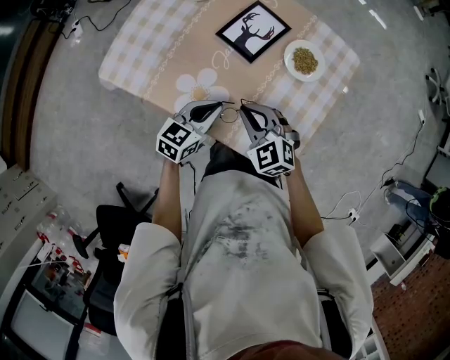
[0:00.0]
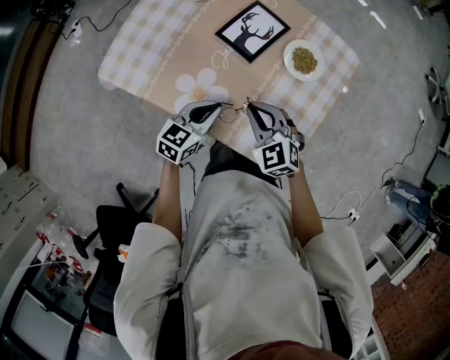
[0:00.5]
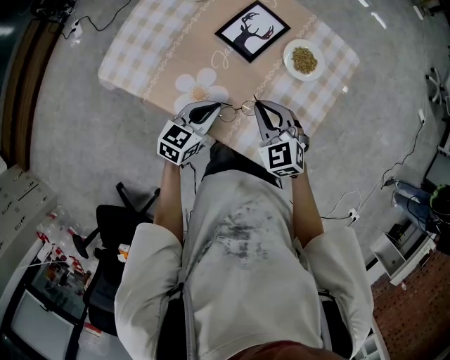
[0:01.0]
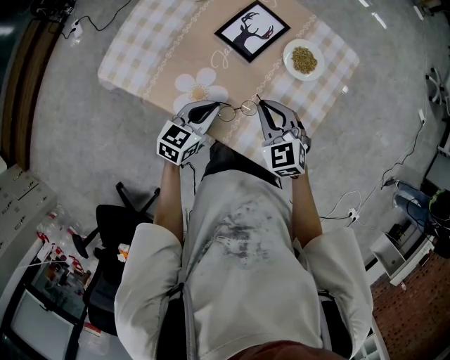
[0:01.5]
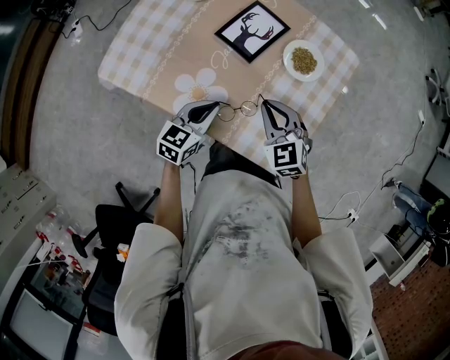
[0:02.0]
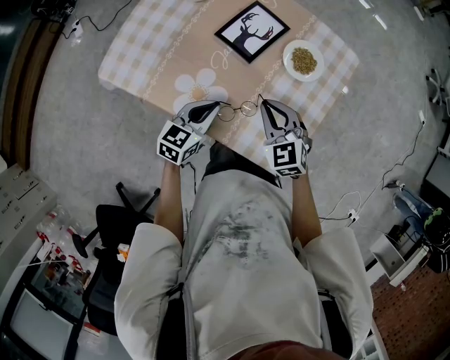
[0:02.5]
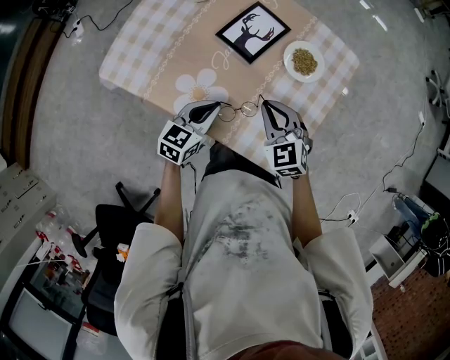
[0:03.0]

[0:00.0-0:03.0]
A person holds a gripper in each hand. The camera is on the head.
0:00.0 to 0:01.5: The right gripper ends up some 5 cm from where it was.
0:01.5 to 0:03.0: Neither gripper changes place.

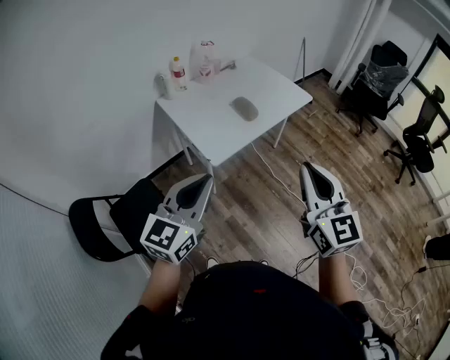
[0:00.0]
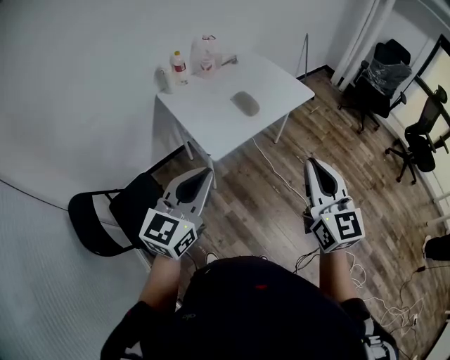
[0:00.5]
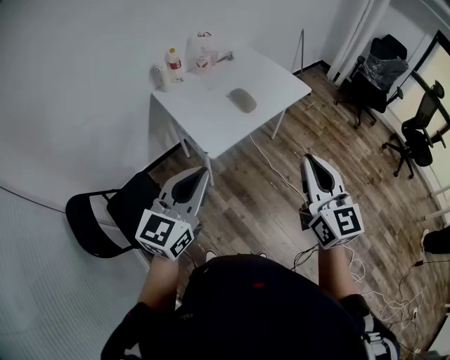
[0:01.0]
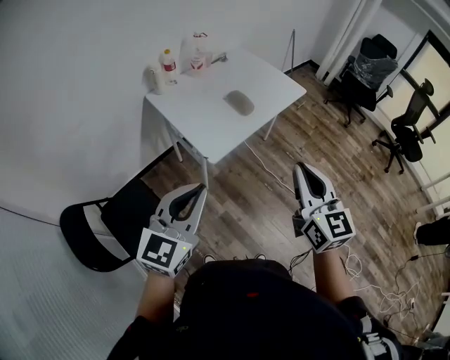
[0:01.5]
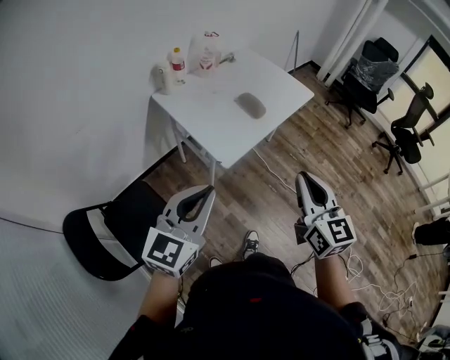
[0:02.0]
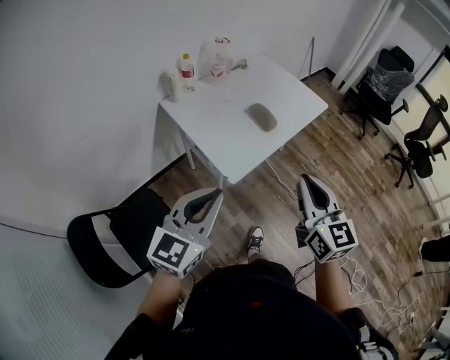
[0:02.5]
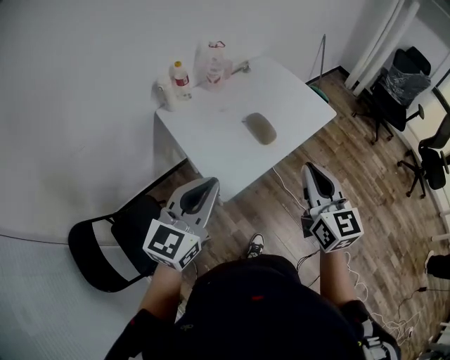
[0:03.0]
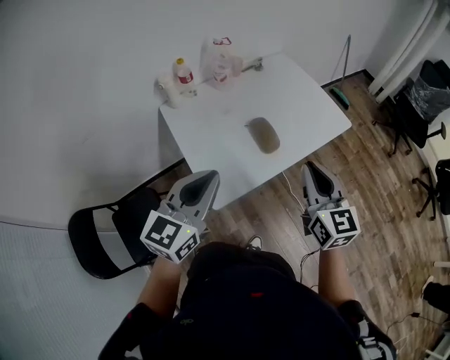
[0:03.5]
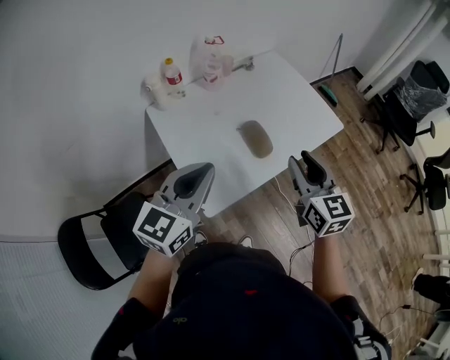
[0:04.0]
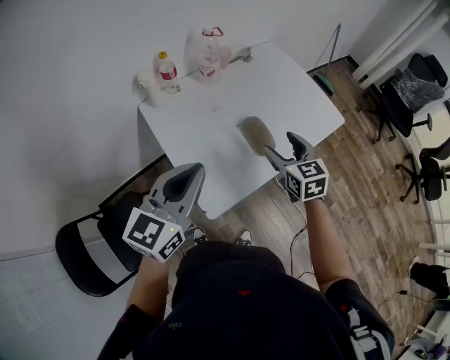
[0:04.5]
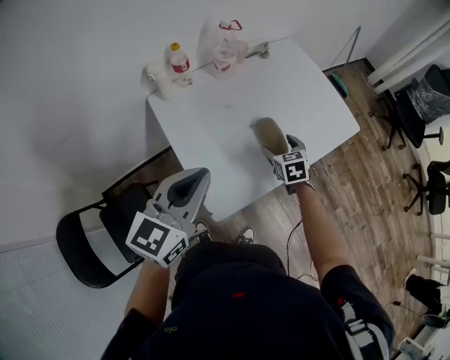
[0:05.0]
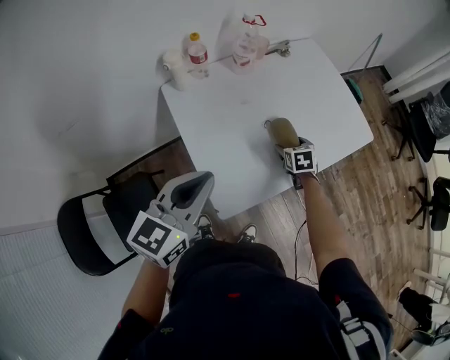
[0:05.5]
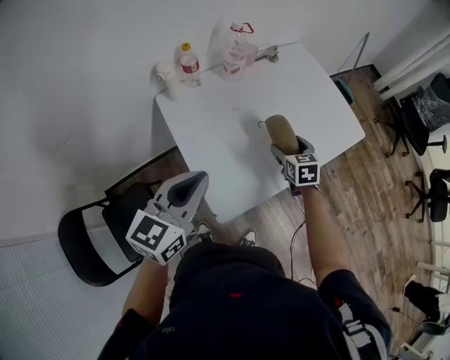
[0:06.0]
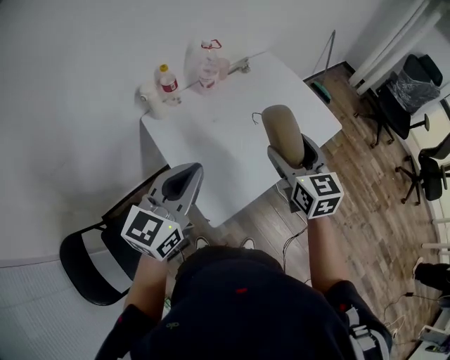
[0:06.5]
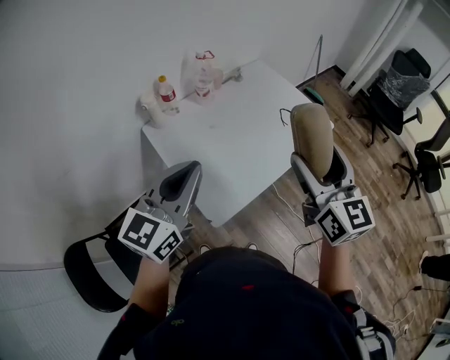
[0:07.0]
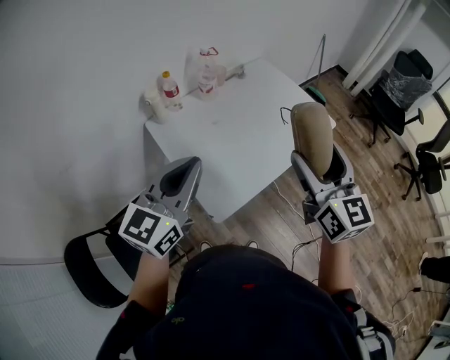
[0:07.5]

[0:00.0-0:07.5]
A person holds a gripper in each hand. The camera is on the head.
0:00.0 to 0:02.0: The left gripper moves to the left, some 10 cm; the right gripper shifts about 10 cm to the left and downward.
0:02.0 to 0:04.0: Both grippers move forward, about 35 cm.
0:04.0 to 0:05.5: The left gripper travels to the left and downward by approximately 10 cm. Meanwhile the right gripper travels downward and forward by about 35 cm, tilts its fingers approximately 40 degrees downward, and opens.
0:05.5 to 0:07.5: The left gripper goes some 10 cm upward, while the right gripper moves upward and backward, about 50 cm, and points its fingers approximately 50 degrees further upward.

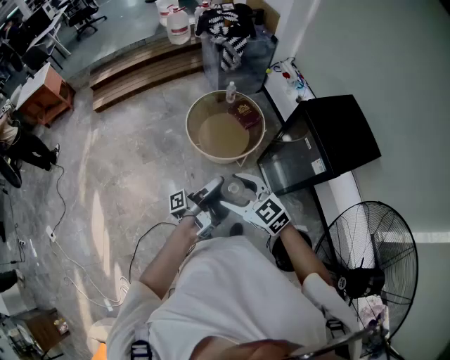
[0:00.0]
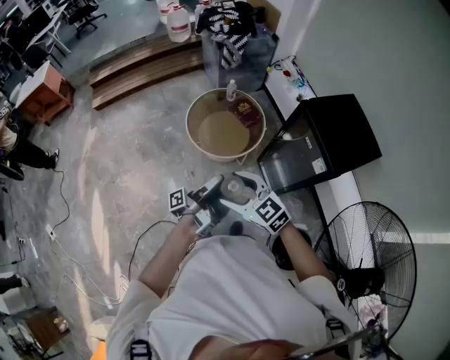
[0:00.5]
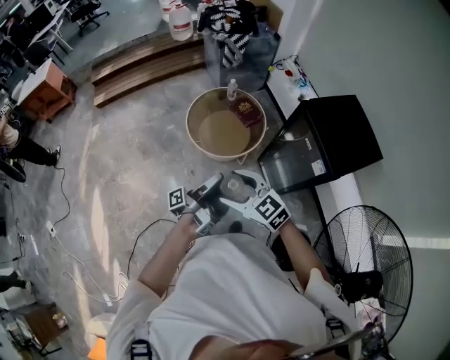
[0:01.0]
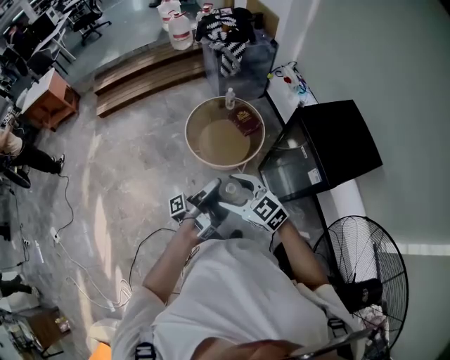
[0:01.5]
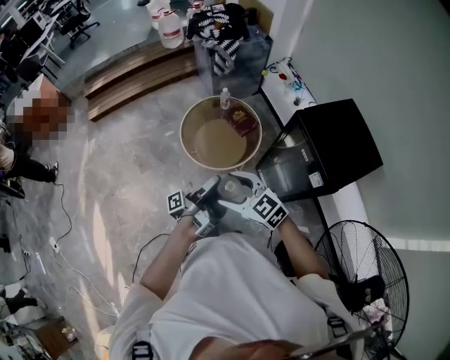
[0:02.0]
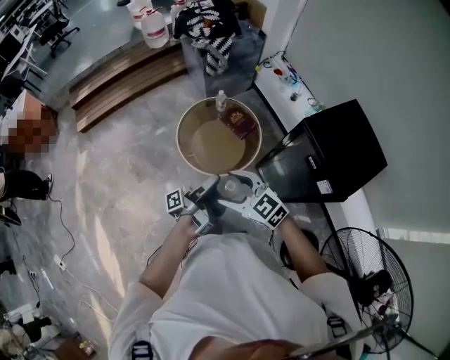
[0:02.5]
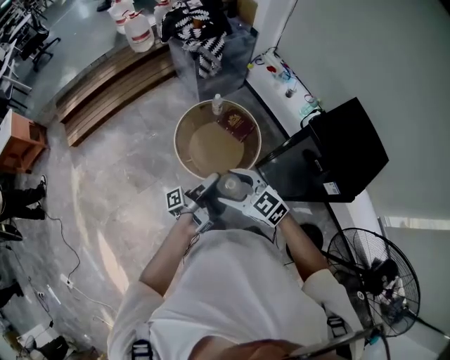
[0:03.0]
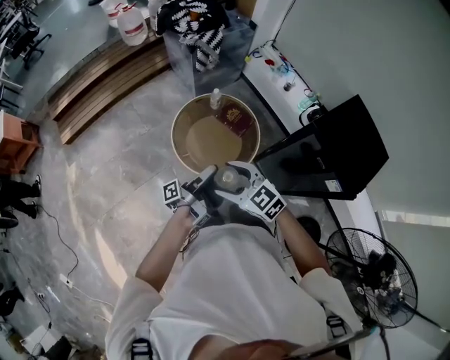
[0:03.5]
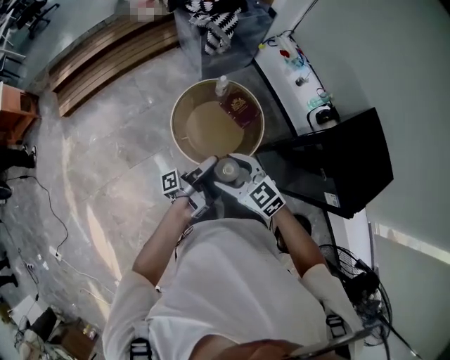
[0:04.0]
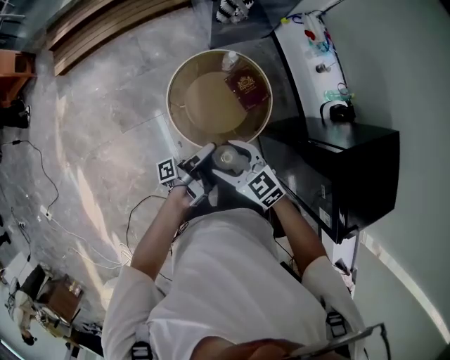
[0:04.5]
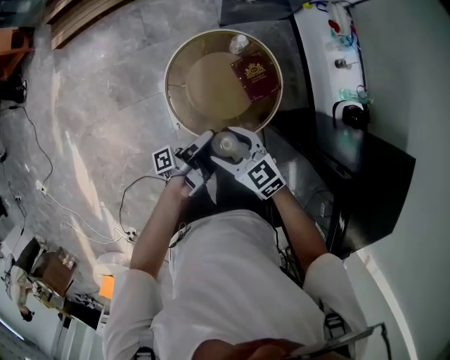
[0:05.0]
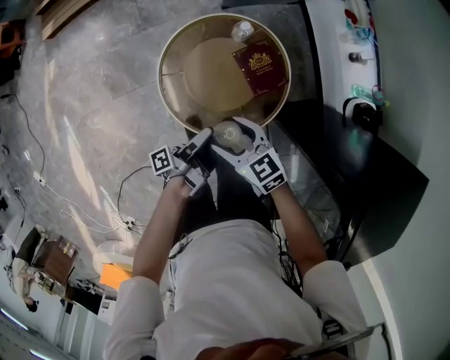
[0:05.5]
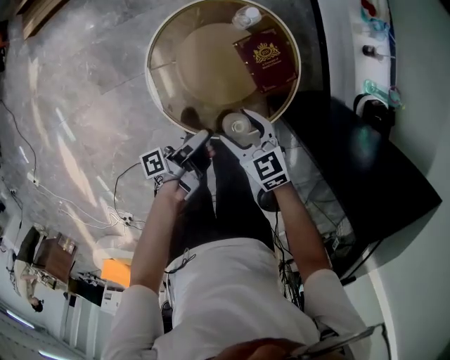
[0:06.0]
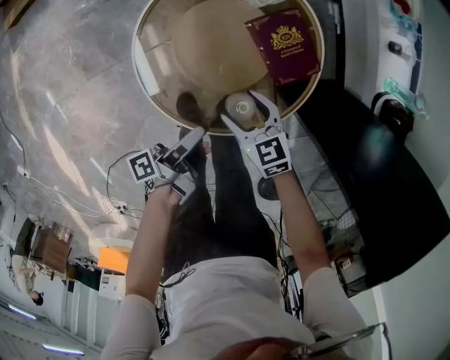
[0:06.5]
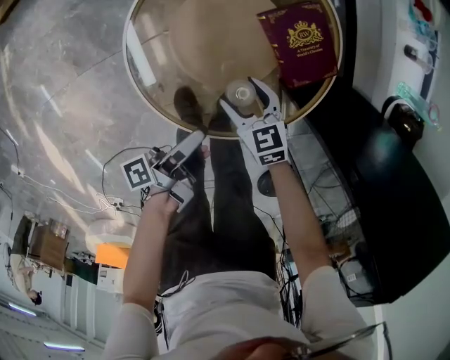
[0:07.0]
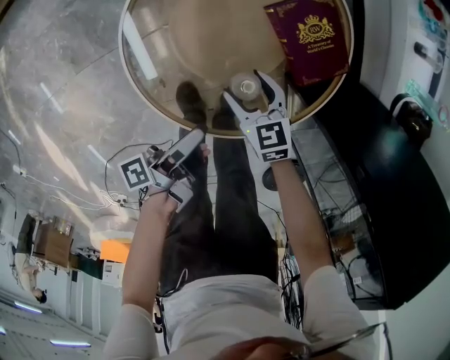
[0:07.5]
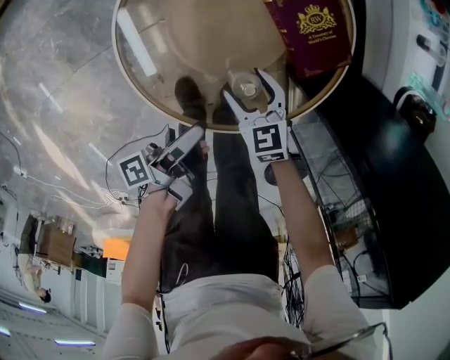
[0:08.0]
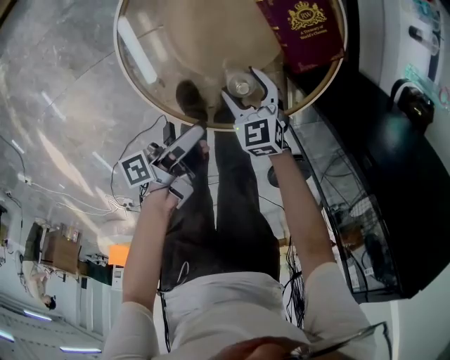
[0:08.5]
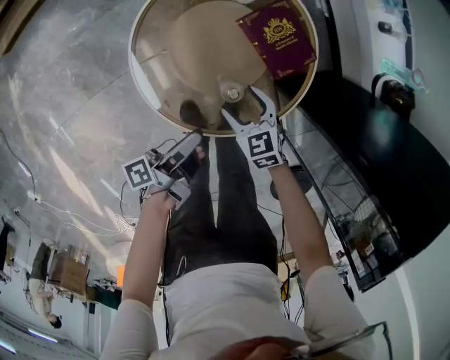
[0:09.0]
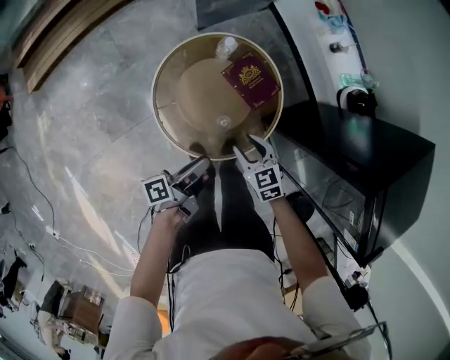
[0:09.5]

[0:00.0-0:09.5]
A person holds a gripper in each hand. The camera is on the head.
0:00.0 to 0:02.0: The right gripper changes place by roughly 10 cm.
0:02.0 to 0:04.0: The right gripper ends up roughly 25 cm from where it was.
0:04.0 to 0:05.5: The right gripper is displaced downward by roughly 25 cm.
0:05.5 to 0:07.5: The right gripper travels downward by some 35 cm, and turns by roughly 20 degrees.
0:07.5 to 0:09.5: The right gripper is displaced upward by roughly 25 cm, and closes up.

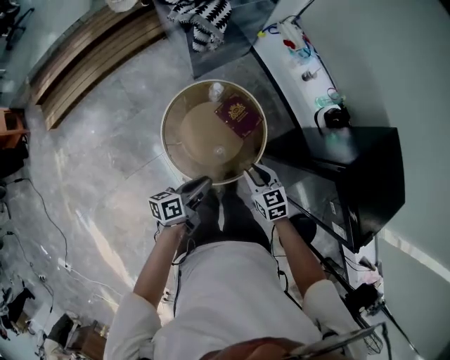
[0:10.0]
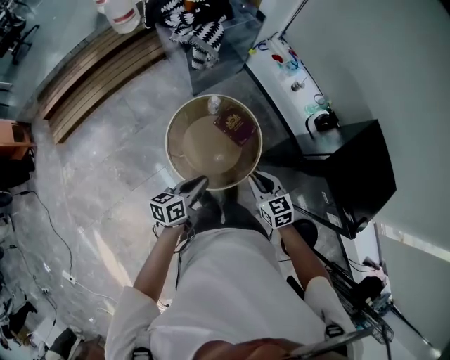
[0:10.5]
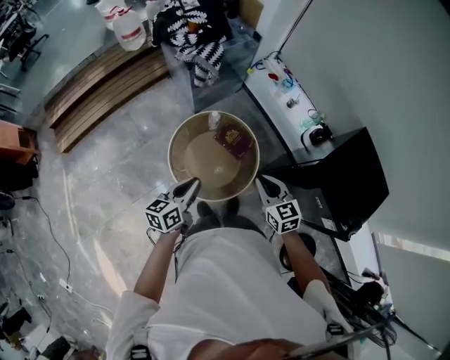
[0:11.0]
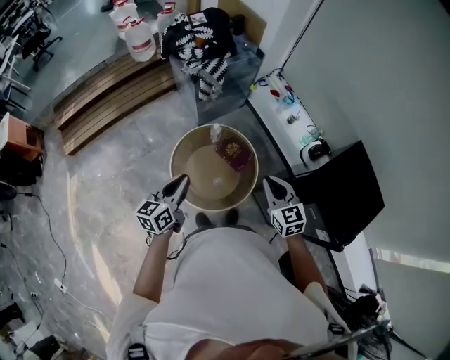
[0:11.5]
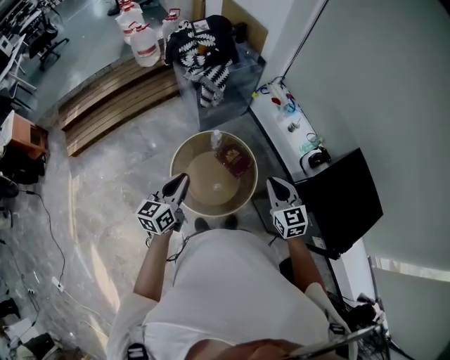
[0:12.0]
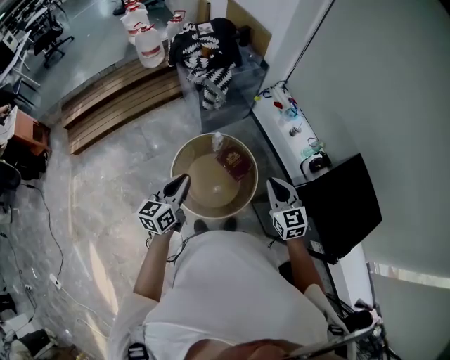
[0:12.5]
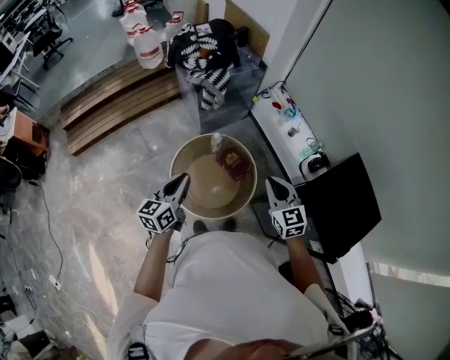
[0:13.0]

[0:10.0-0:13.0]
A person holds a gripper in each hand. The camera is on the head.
0:10.0 to 0:11.5: The right gripper heads upward, covering some 25 cm, and changes its angle by roughly 20 degrees.

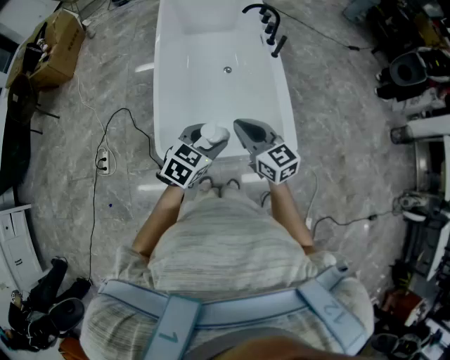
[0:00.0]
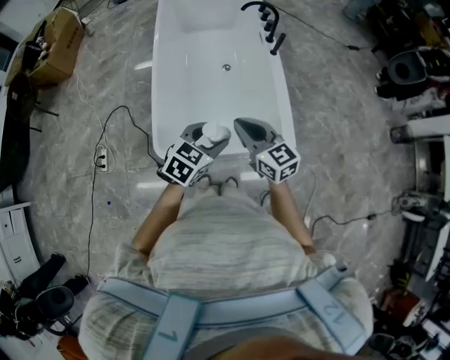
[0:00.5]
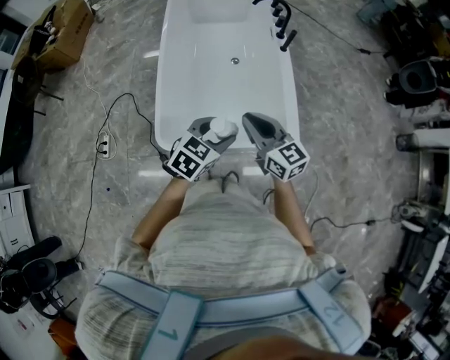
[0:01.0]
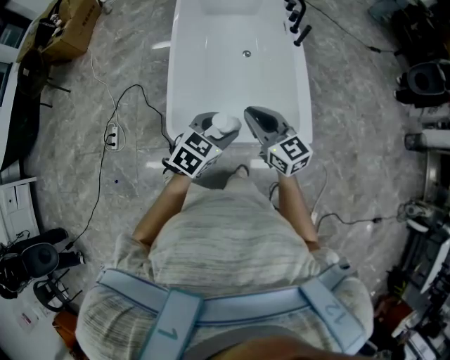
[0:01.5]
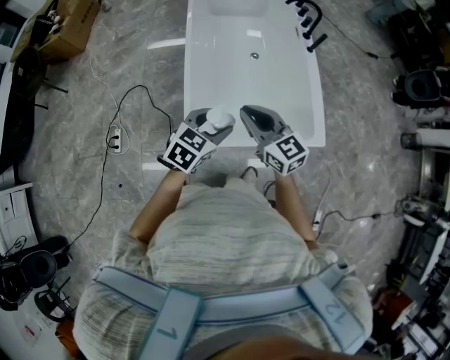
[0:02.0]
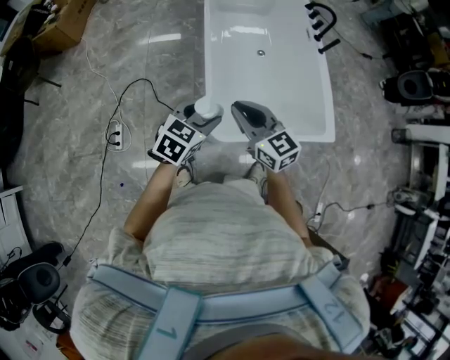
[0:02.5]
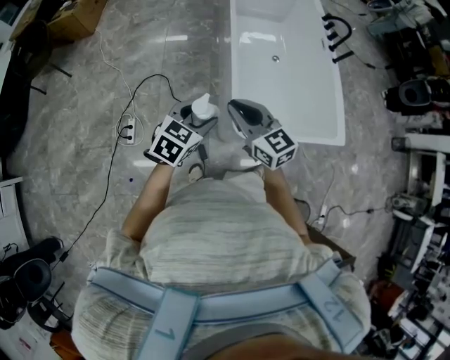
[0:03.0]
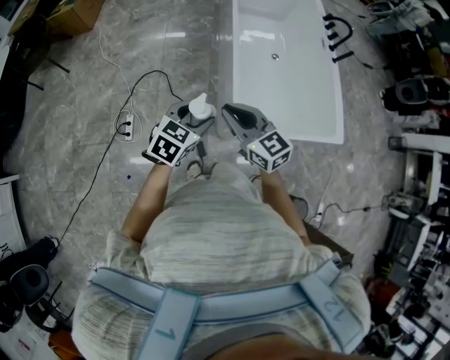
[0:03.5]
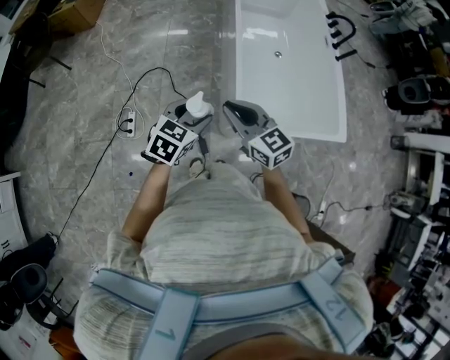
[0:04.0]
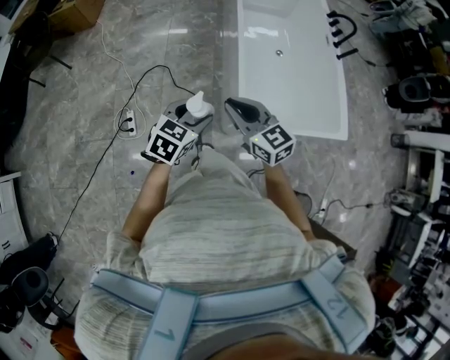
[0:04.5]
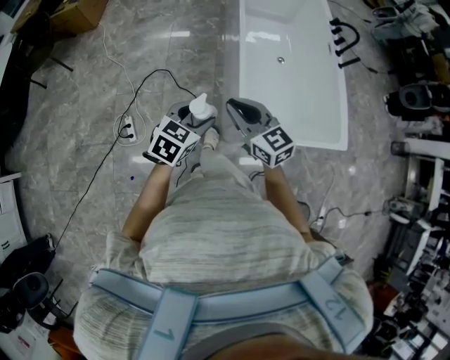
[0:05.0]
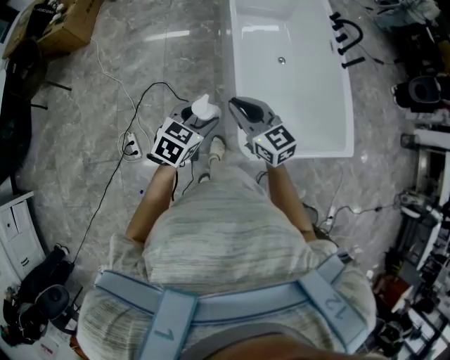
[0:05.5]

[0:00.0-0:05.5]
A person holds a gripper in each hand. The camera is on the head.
0:00.0 to 0:02.0: The grippers both shift to the left by roughly 15 cm.
0:02.0 to 0:03.5: The two grippers go some 35 cm to the left.
0:03.5 to 0:05.5: Both grippers travel together forward, about 15 cm.
